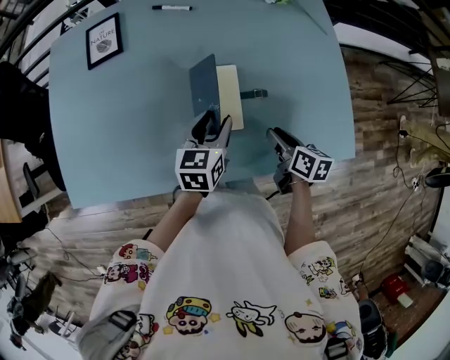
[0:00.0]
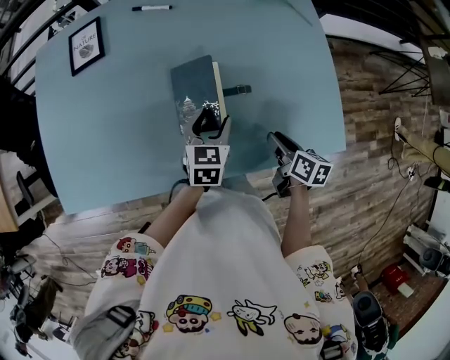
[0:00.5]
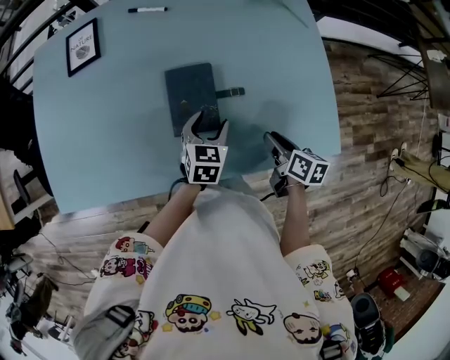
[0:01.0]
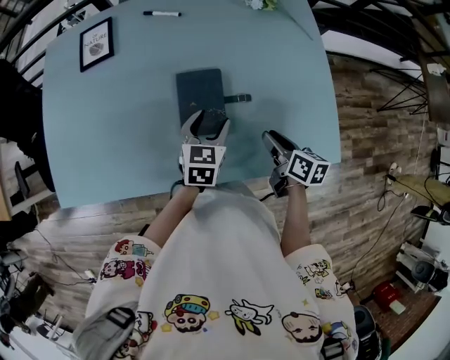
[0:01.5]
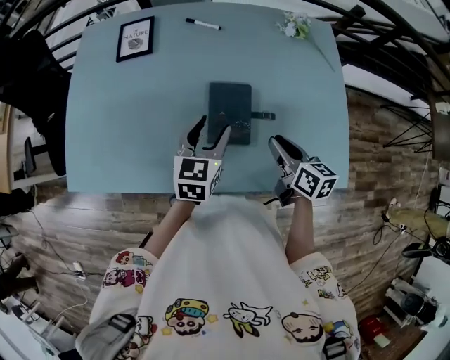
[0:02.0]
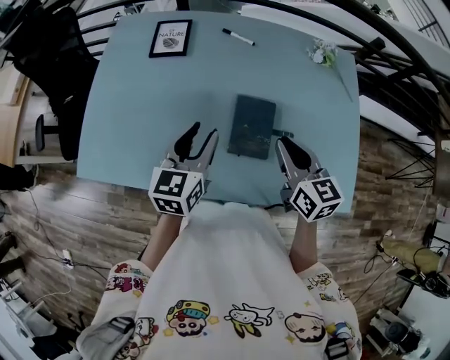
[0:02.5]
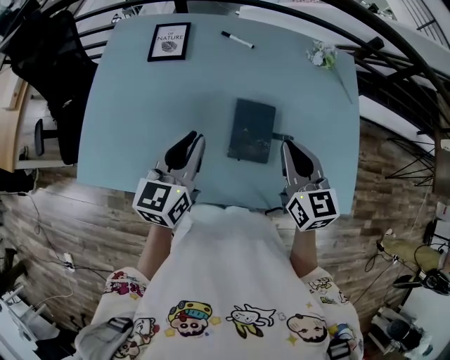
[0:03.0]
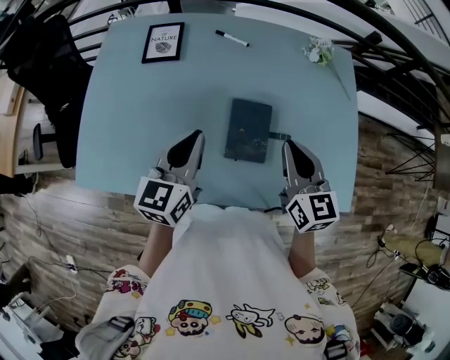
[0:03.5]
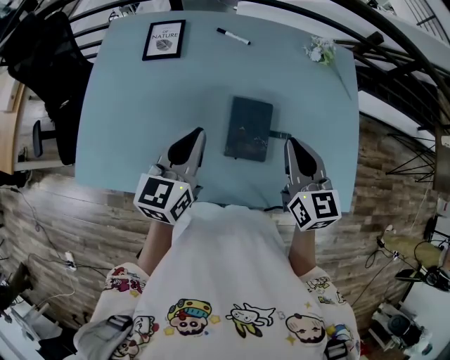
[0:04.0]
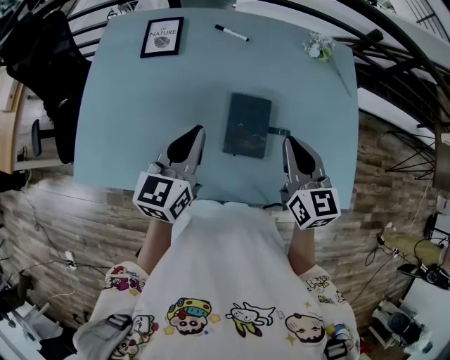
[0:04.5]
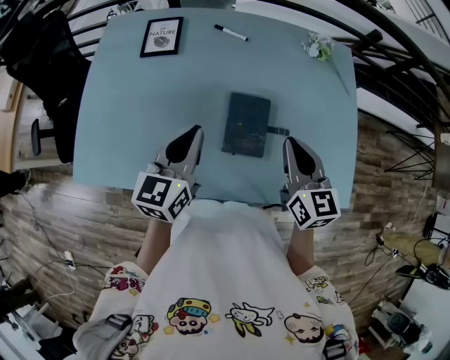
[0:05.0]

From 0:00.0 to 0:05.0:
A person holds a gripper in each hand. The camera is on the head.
From 0:00.0 to 0:02.5: The right gripper moves upward and to the left, some 20 cm, and turns by about 40 degrees. Meanwhile the left gripper shifts approximately 20 cm to the left and upward.
From 0:02.5 to 0:05.0: The left gripper closes up.

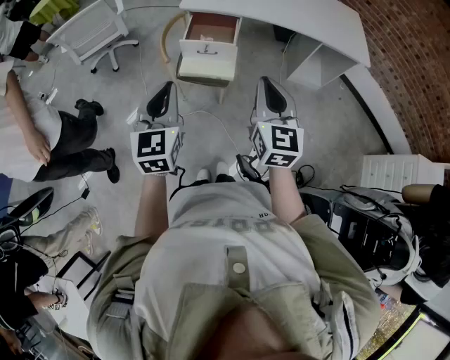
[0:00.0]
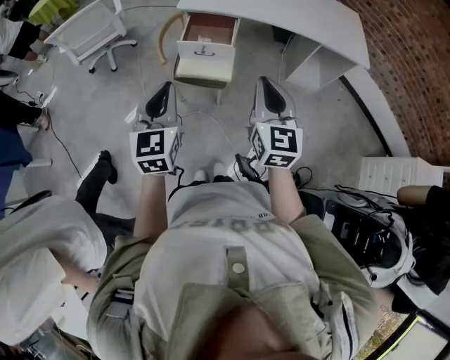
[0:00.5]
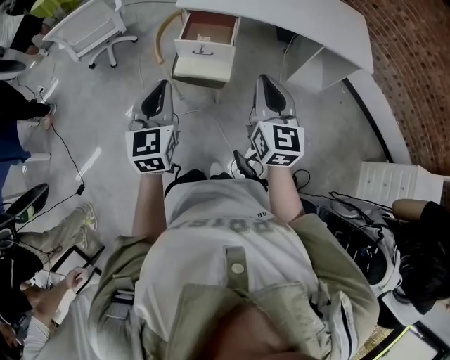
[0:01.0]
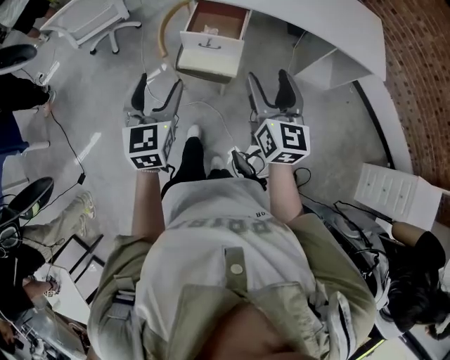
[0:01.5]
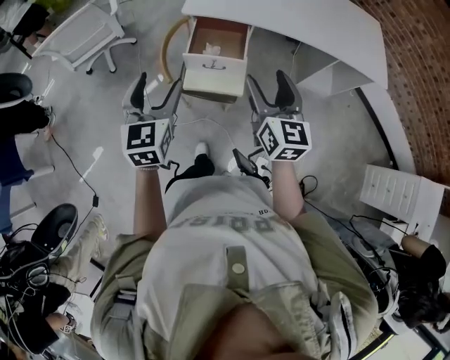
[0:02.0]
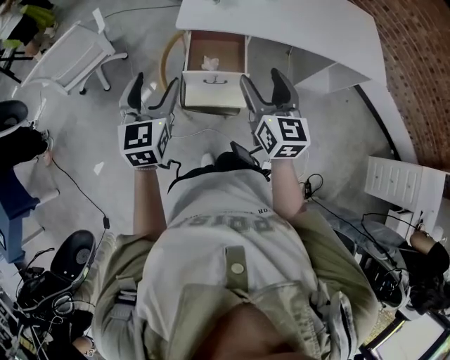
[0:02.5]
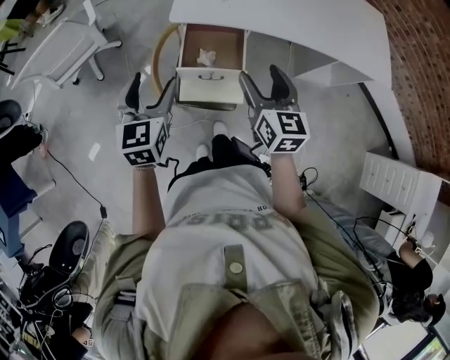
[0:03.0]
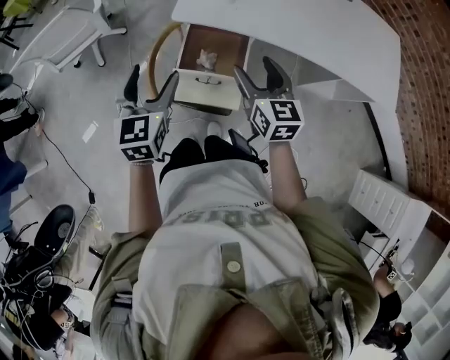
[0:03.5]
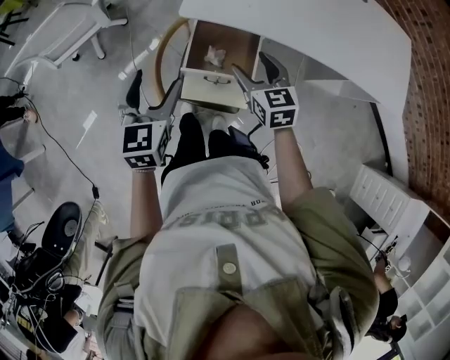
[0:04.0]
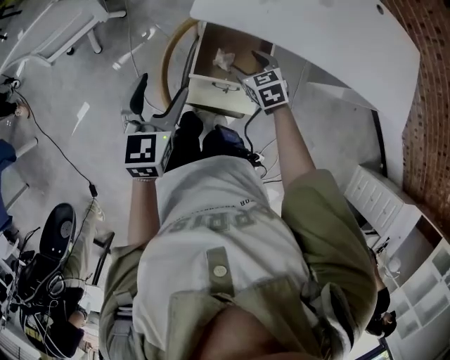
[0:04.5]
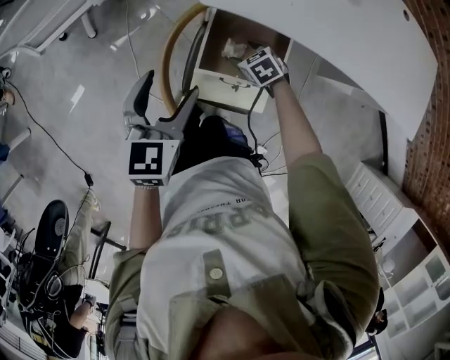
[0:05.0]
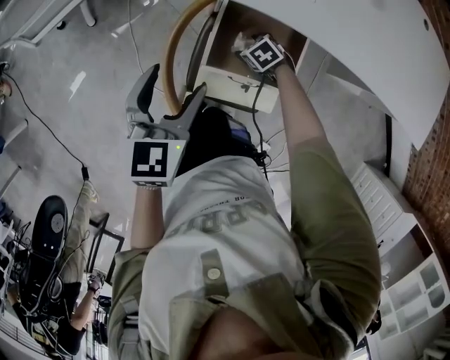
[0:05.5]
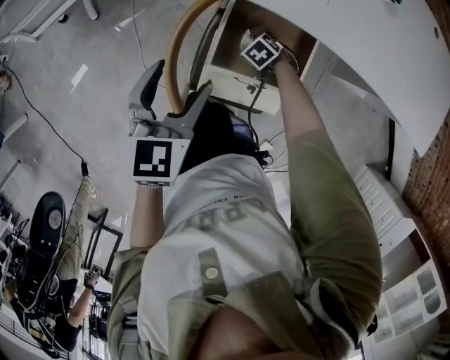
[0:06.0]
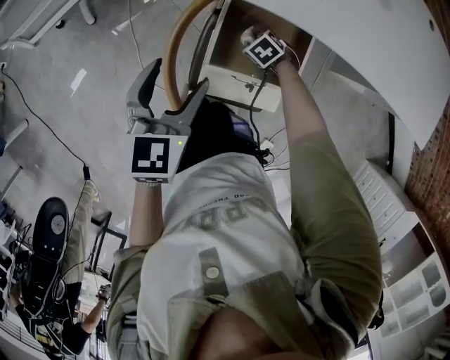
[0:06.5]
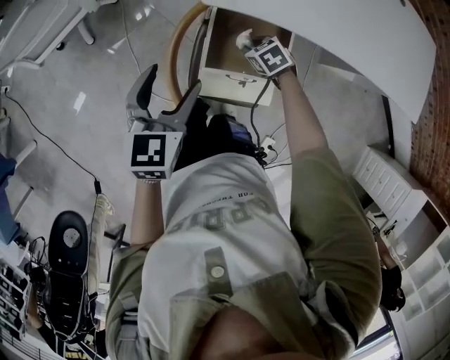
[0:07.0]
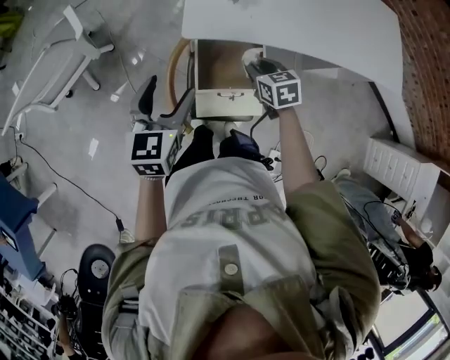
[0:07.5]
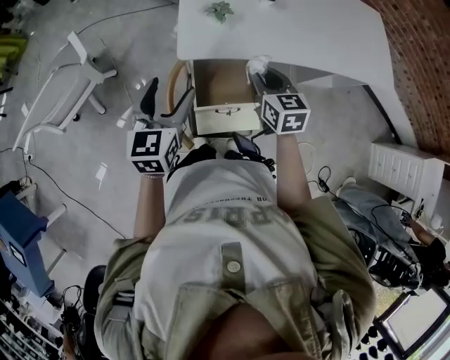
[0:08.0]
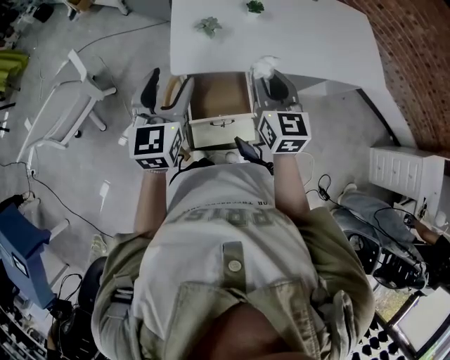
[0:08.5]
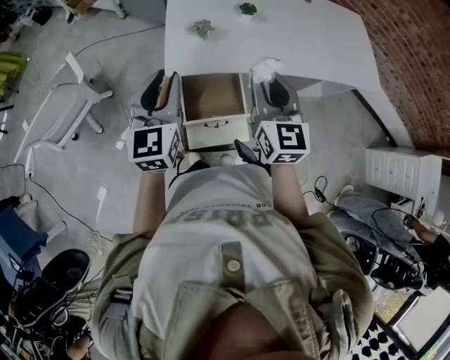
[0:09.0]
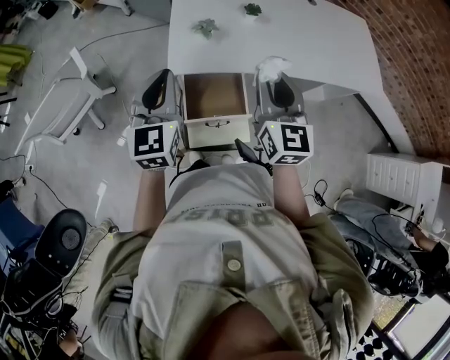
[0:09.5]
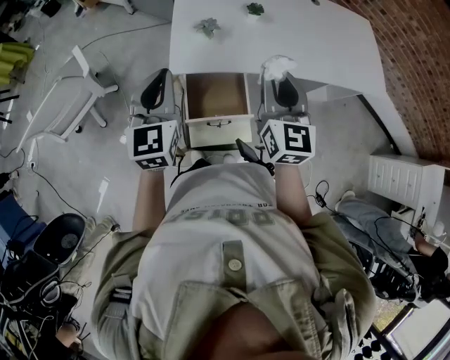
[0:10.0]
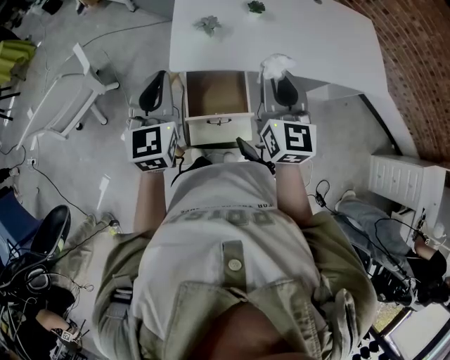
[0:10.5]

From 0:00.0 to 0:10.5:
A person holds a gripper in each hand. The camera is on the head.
From 0:00.0 to 0:02.0: Both grippers travel together forward, approximately 20 cm. The right gripper opens. Meanwhile the left gripper opens its fingers.
From 0:02.0 to 0:04.0: The right gripper travels forward and downward by some 30 cm, and turns by roughly 30 degrees. Meanwhile the left gripper goes roughly 20 cm forward.
From 0:04.0 to 0:06.5: The right gripper shifts about 40 cm downward, angles its fingers downward, by some 50 degrees, and closes, while the left gripper goes approximately 20 cm downward.
From 0:06.5 to 0:08.5: The right gripper heads upward, covering some 50 cm, and tilts its fingers some 60 degrees upward. The left gripper heads upward, covering about 25 cm, and turns by some 20 degrees.
From 0:08.5 to 0:10.5: The left gripper closes up, while the right gripper shifts approximately 5 cm upward.

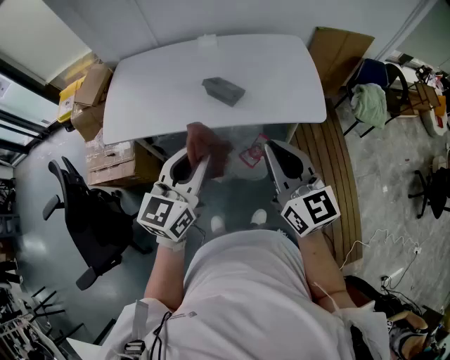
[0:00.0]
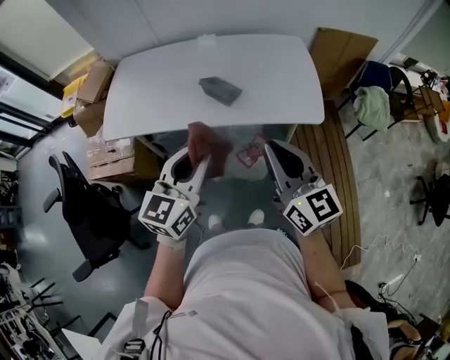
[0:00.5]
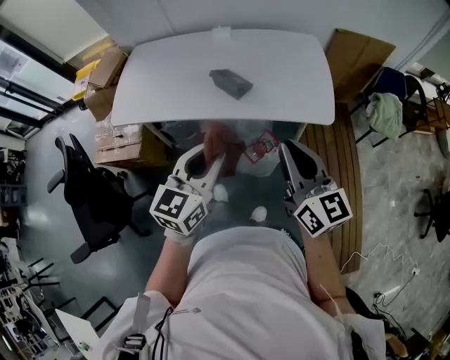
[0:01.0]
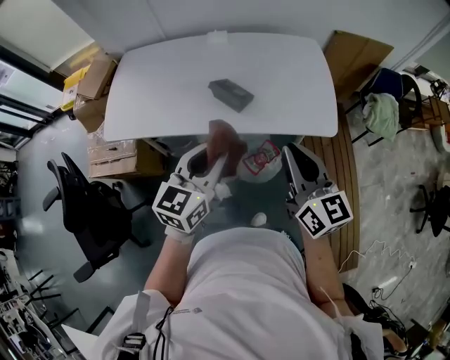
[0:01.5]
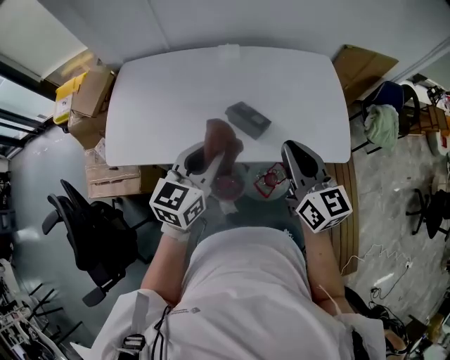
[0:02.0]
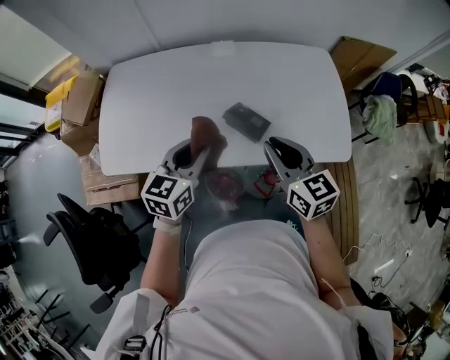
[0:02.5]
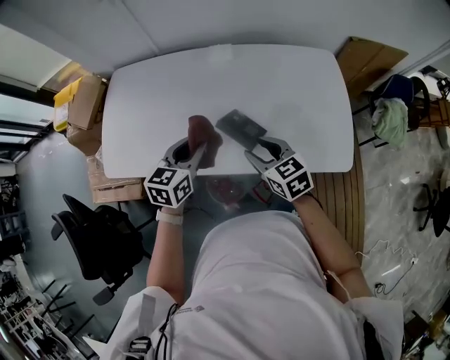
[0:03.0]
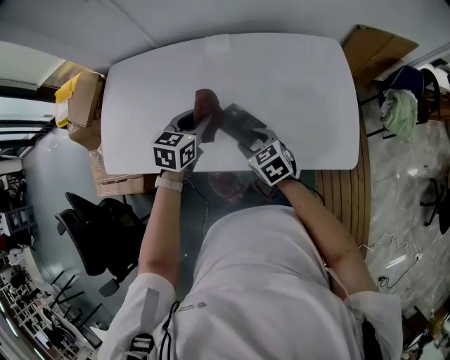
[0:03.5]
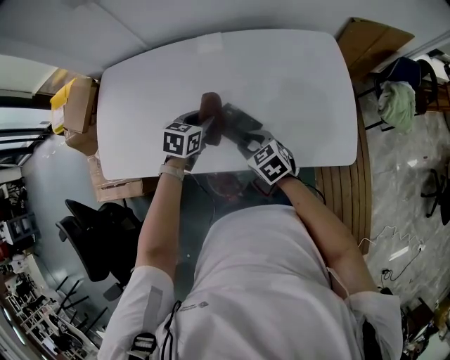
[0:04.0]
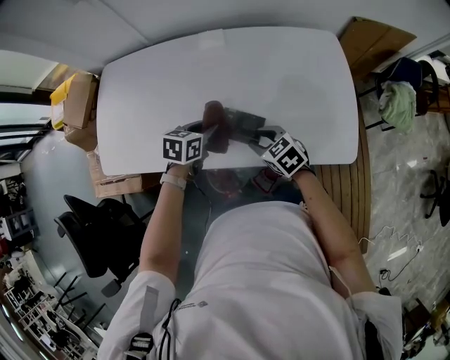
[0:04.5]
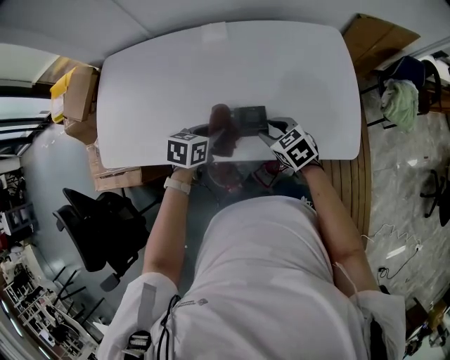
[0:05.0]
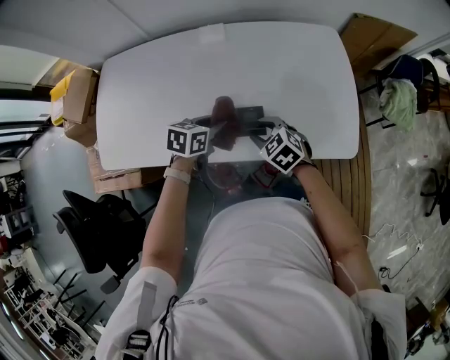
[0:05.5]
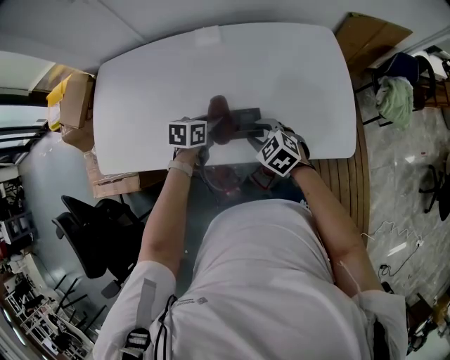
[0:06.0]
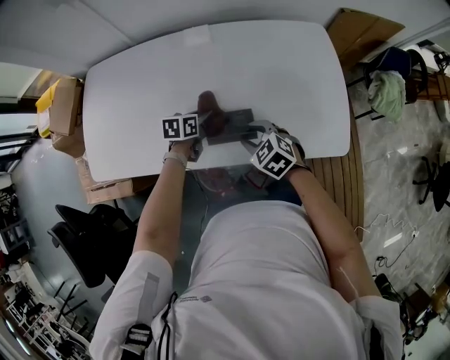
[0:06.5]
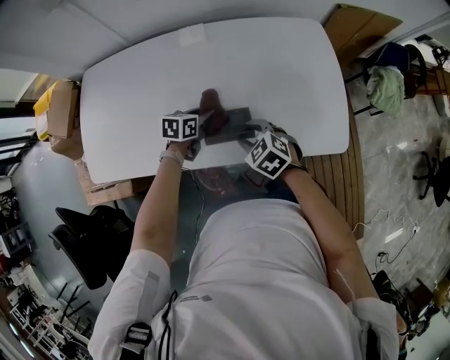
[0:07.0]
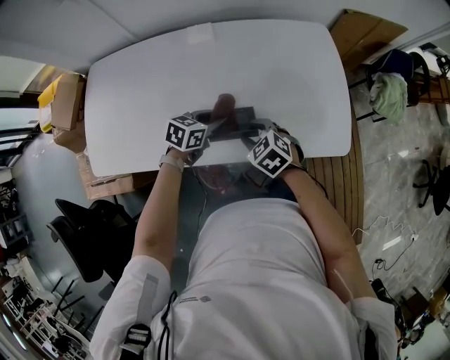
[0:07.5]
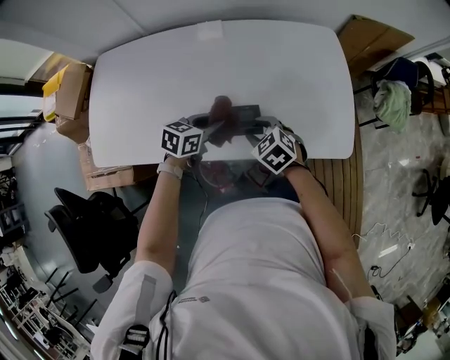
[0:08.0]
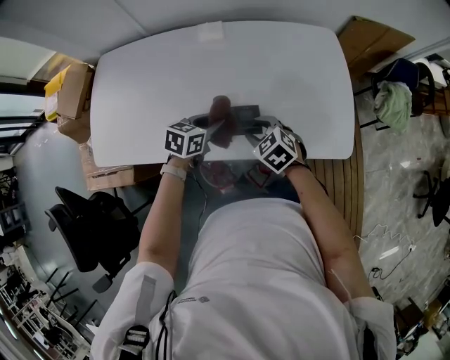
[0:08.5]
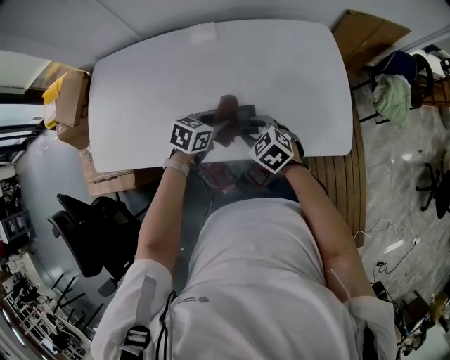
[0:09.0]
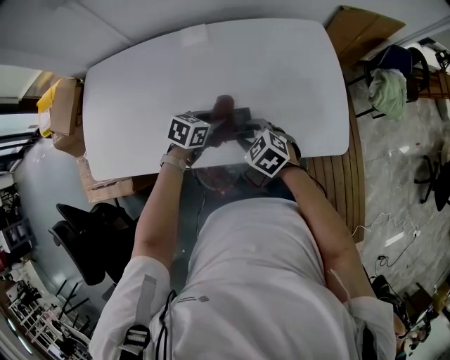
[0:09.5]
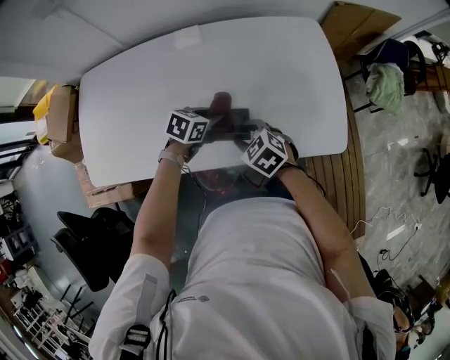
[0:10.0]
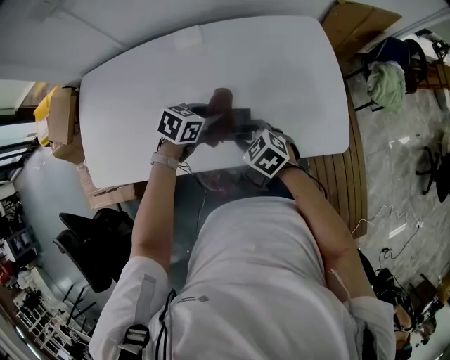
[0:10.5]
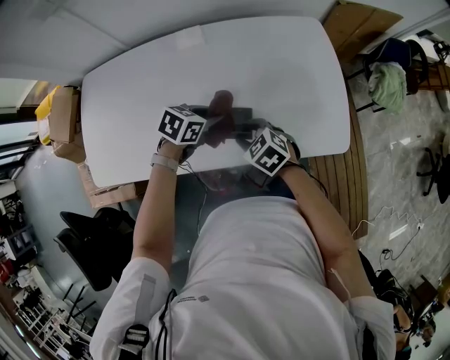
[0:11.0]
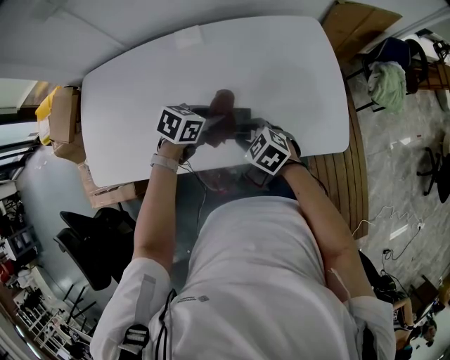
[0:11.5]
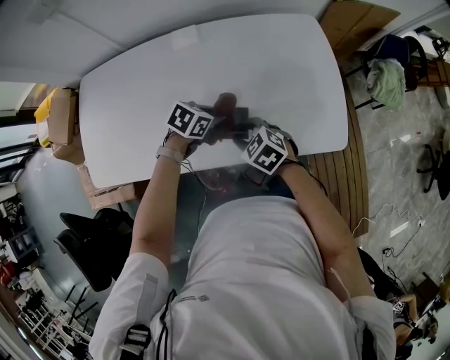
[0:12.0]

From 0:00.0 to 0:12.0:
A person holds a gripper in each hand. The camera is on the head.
From 0:00.0 to 0:02.0: The grippers both shift forward by about 20 cm.
From 0:02.0 to 0:04.0: The left gripper is displaced downward and forward by approximately 30 cm, and tilts its fingers approximately 30 degrees downward, while the right gripper shifts roughly 25 cm downward, angles its fingers downward, by approximately 40 degrees, and opens.
From 0:04.0 to 0:06.0: The left gripper changes place by approximately 5 cm.
From 0:08.0 to 0:10.0: The left gripper ends up roughly 5 cm from where it was.
From 0:10.0 to 0:12.0: The grippers make only small movements.
